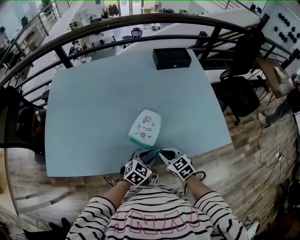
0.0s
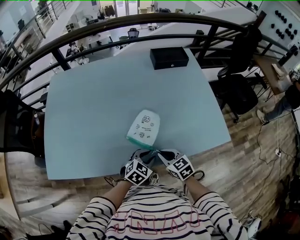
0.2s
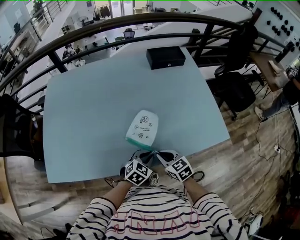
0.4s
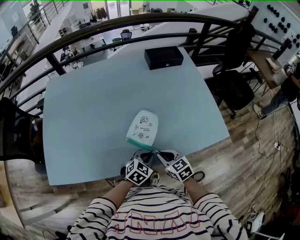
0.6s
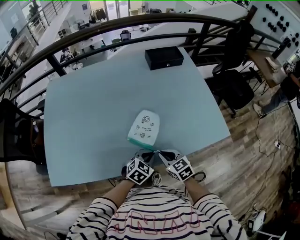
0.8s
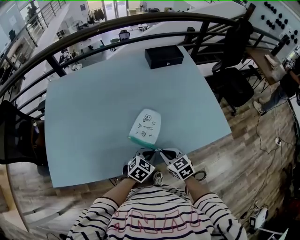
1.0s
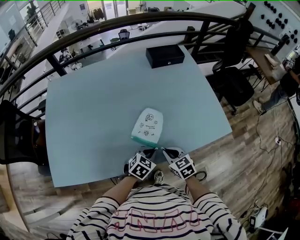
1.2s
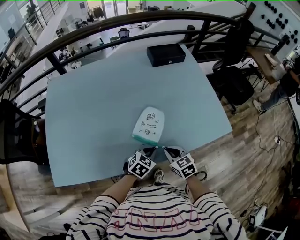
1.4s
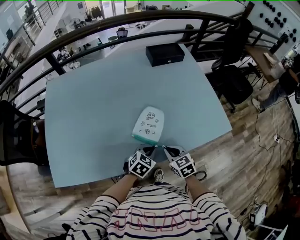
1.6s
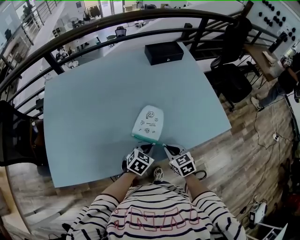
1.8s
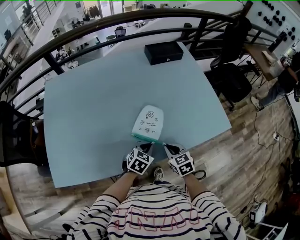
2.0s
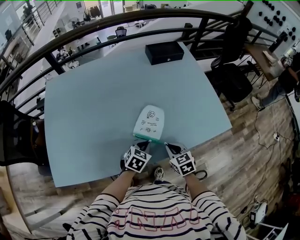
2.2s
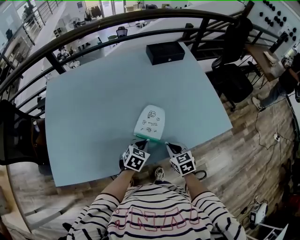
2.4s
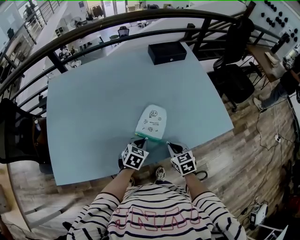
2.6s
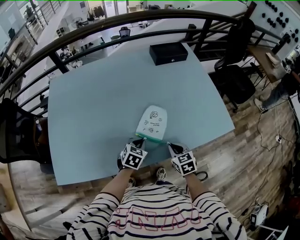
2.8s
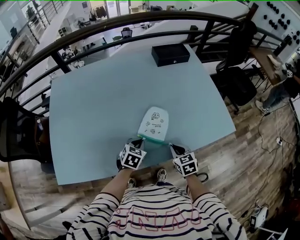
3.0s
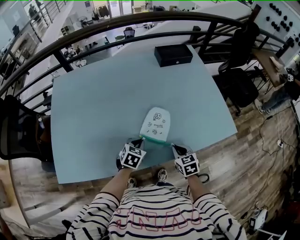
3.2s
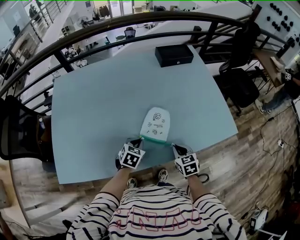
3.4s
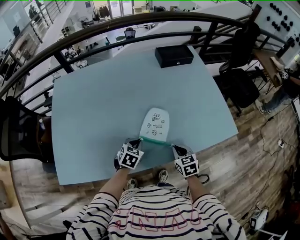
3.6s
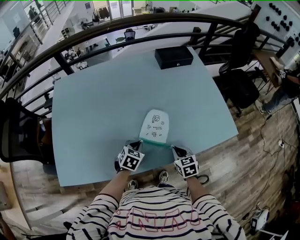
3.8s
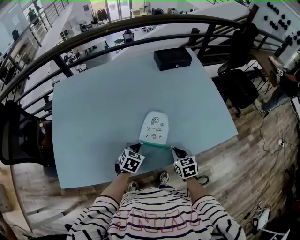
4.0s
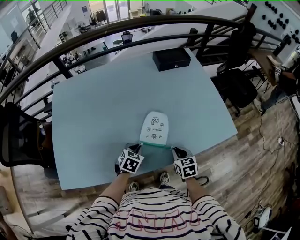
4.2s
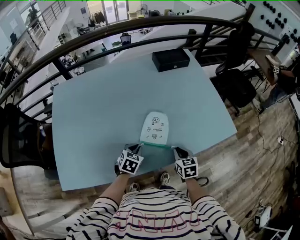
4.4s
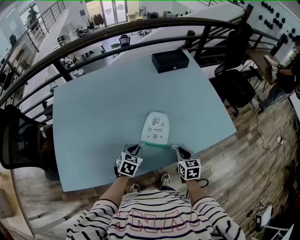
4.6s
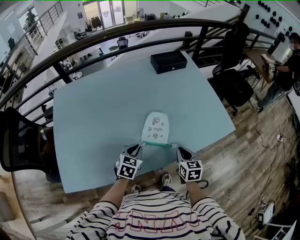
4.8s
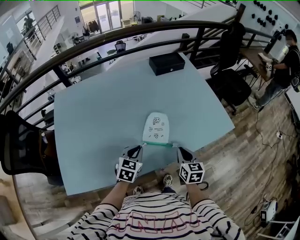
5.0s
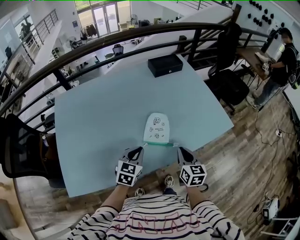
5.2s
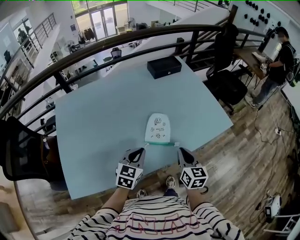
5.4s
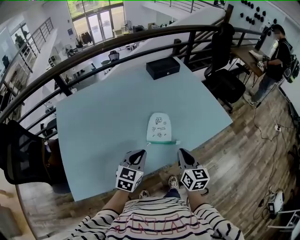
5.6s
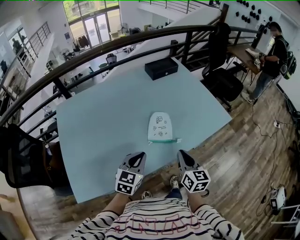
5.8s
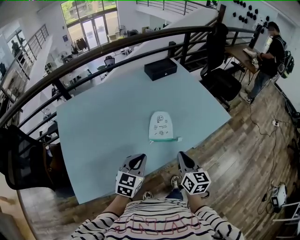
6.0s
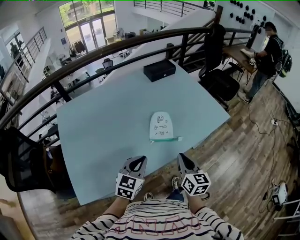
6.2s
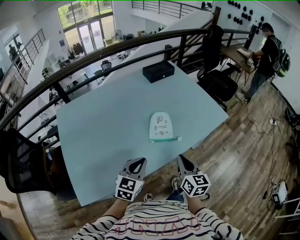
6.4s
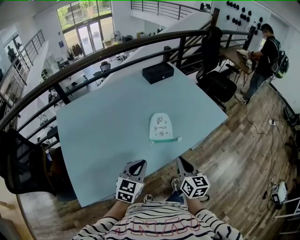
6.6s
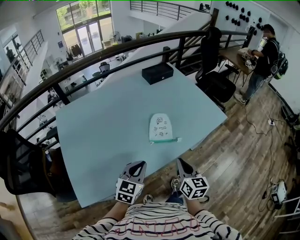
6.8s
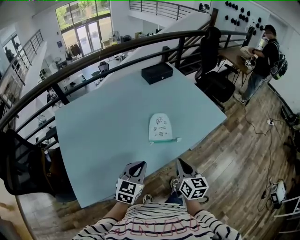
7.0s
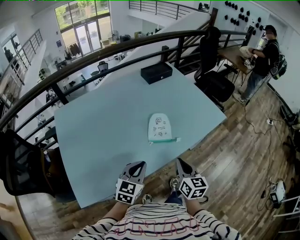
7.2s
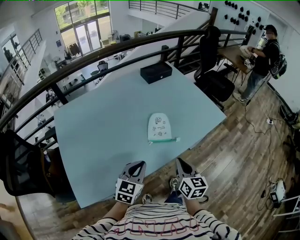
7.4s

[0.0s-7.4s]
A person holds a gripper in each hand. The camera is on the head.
0.0s to 1.4s: The left gripper closes up.
1.4s to 3.0s: The left gripper goes roughly 10 cm to the left.
3.0s to 4.4s: There are only small adjustments of the grippers.
4.4s to 6.0s: Both grippers travel together upward and backward, about 20 cm. The right gripper rotates approximately 30 degrees, while the left gripper turns by approximately 30 degrees.
6.0s to 7.4s: There are only small adjustments of the grippers.

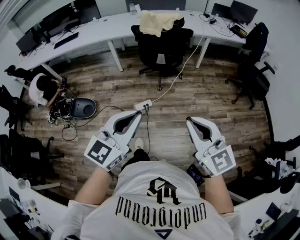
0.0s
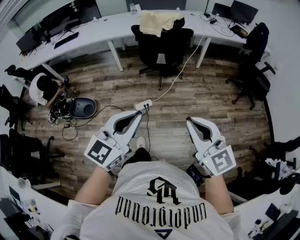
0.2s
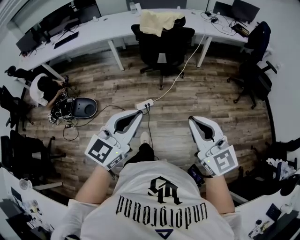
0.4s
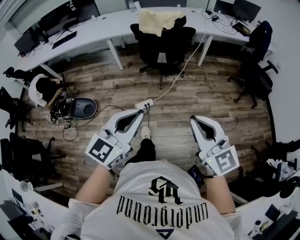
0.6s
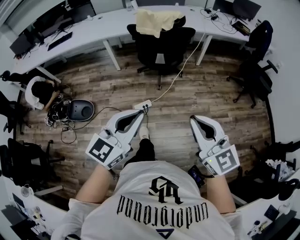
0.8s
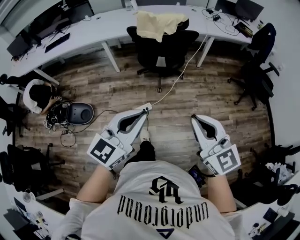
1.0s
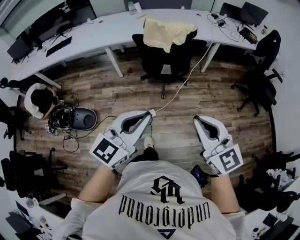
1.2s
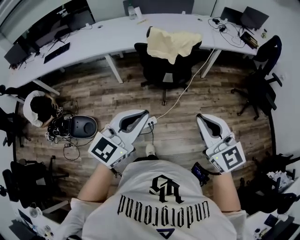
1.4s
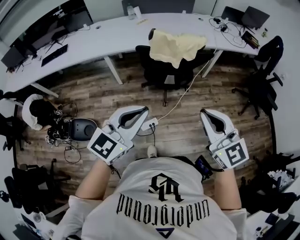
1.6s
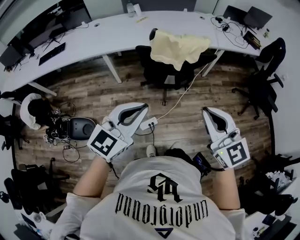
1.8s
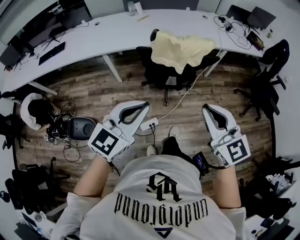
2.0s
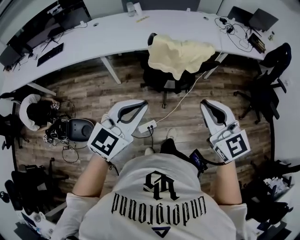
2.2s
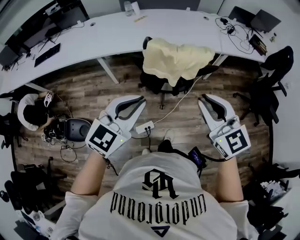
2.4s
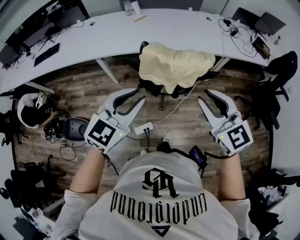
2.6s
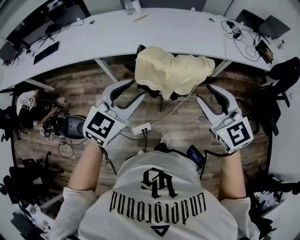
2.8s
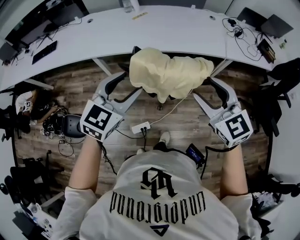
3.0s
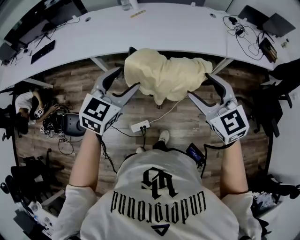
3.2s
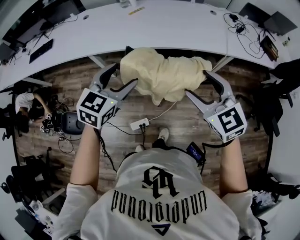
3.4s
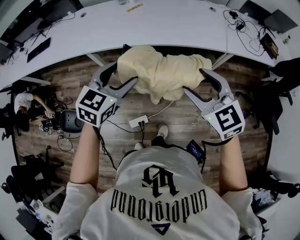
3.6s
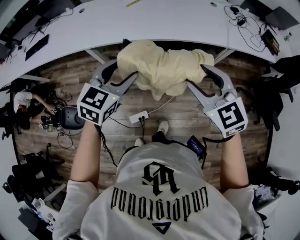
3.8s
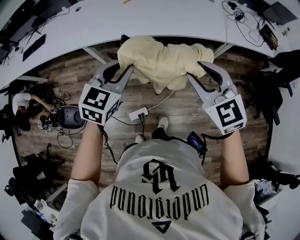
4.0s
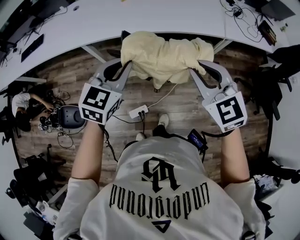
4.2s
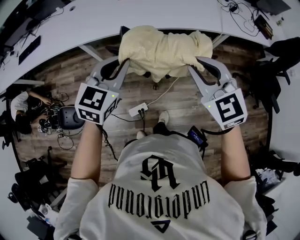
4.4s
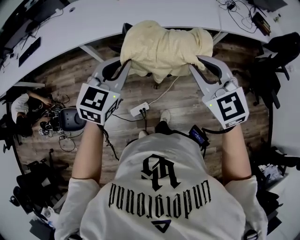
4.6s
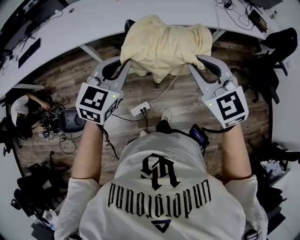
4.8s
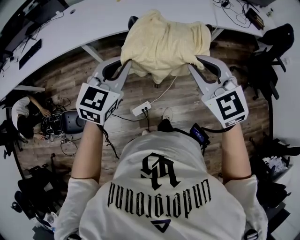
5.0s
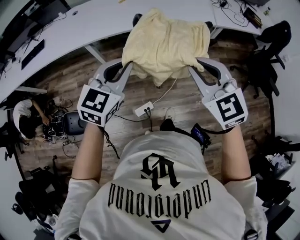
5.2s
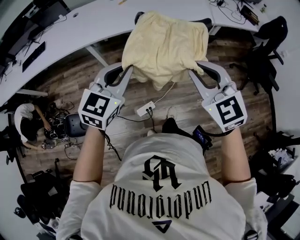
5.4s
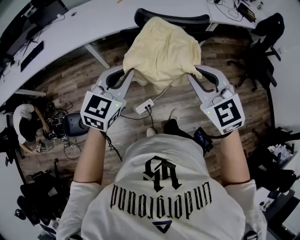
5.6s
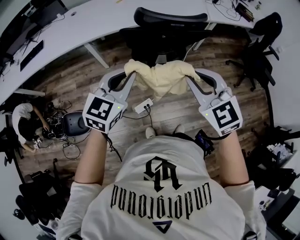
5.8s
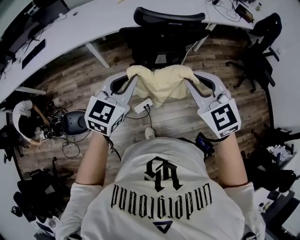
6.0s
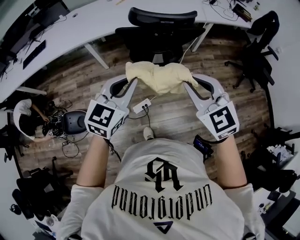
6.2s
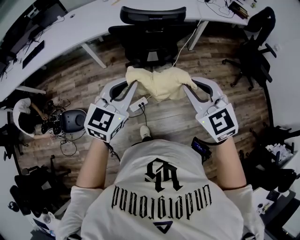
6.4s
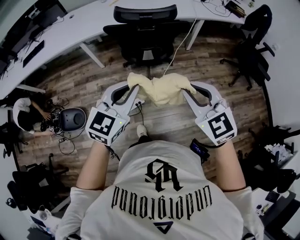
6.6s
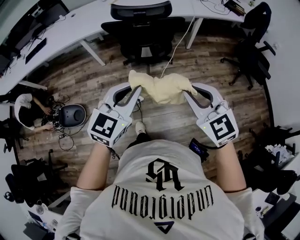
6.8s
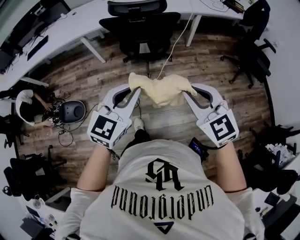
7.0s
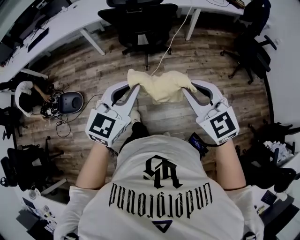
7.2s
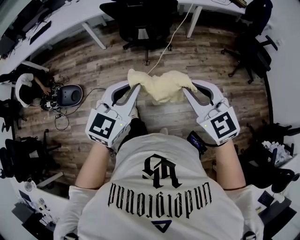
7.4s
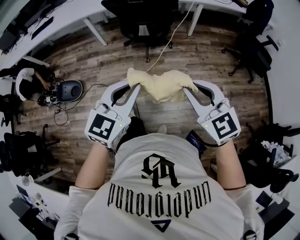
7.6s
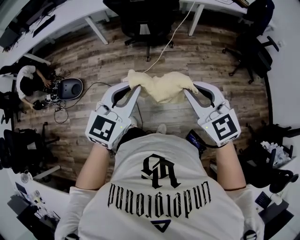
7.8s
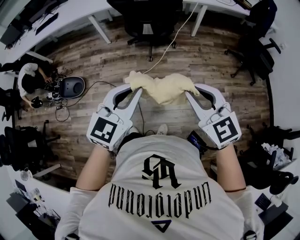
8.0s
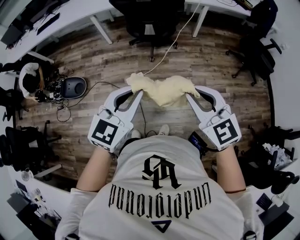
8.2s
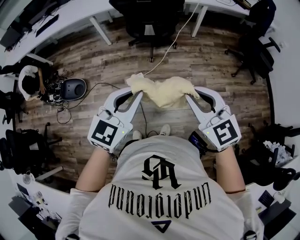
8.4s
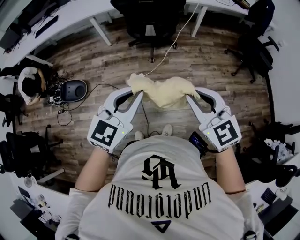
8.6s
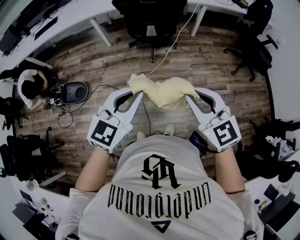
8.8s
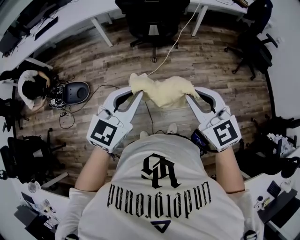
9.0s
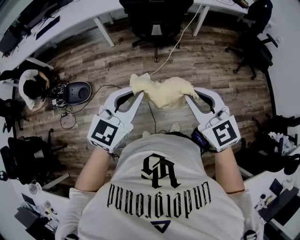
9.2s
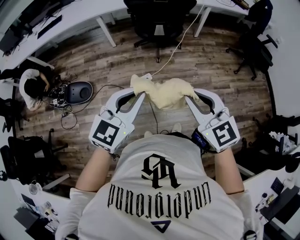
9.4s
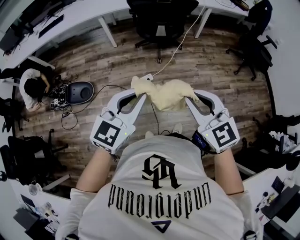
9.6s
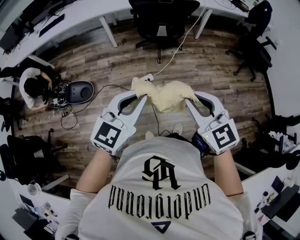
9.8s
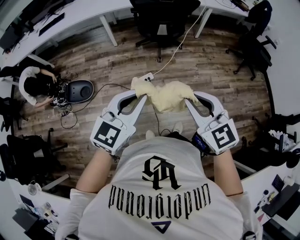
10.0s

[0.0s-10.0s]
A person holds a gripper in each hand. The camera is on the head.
0.0s to 1.4s: The two grippers go roughly 30 cm forward.
1.4s to 2.8s: The grippers both shift forward by about 35 cm. The right gripper opens. The left gripper opens its fingers.
2.8s to 4.2s: The right gripper shifts approximately 5 cm forward, and opens, then closes once more. The left gripper goes about 10 cm forward and downward, and opens, then closes again.
4.2s to 5.8s: The grippers both shift backward by roughly 20 cm.
5.8s to 7.2s: Both grippers travel together backward and to the right, about 35 cm.
7.2s to 8.6s: The two grippers go some 10 cm backward.
8.6s to 10.0s: The two grippers go about 20 cm to the left and backward.

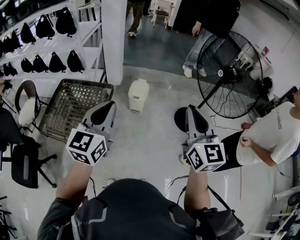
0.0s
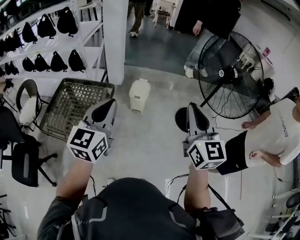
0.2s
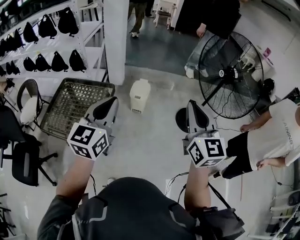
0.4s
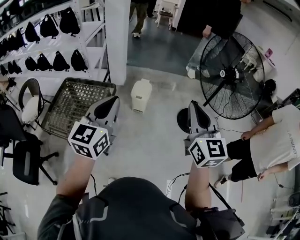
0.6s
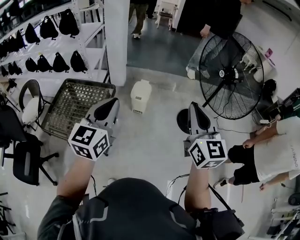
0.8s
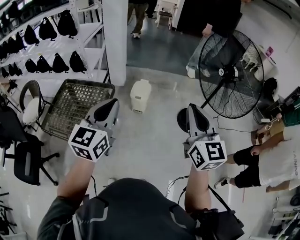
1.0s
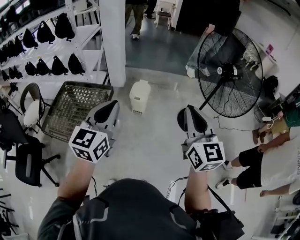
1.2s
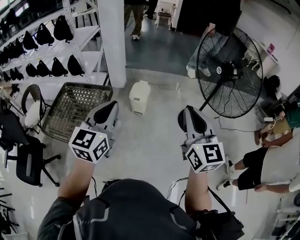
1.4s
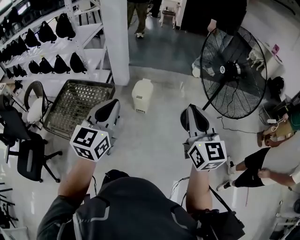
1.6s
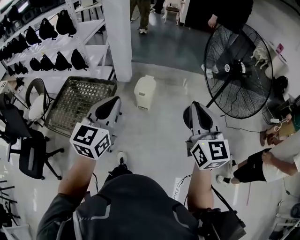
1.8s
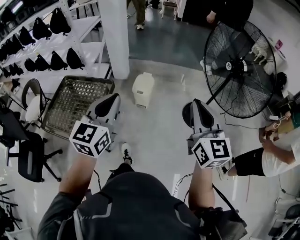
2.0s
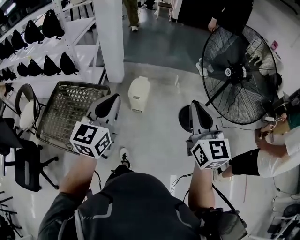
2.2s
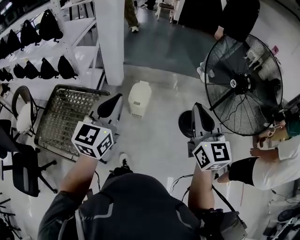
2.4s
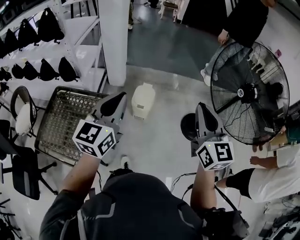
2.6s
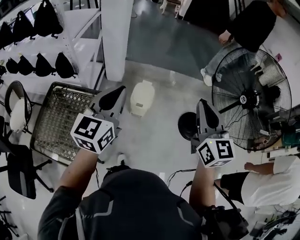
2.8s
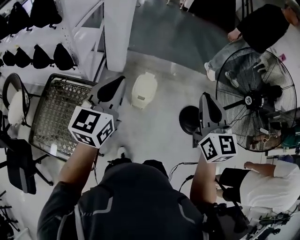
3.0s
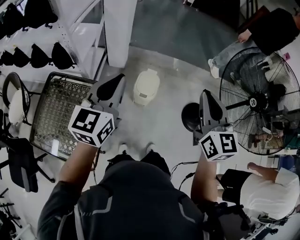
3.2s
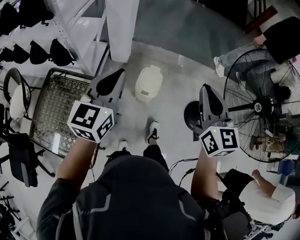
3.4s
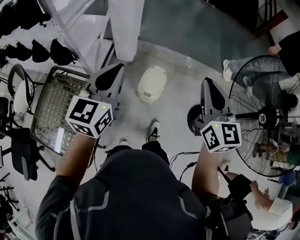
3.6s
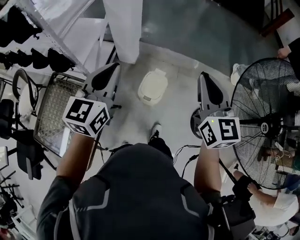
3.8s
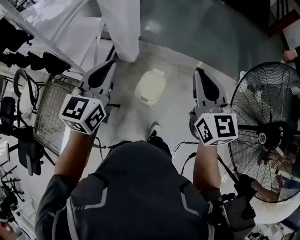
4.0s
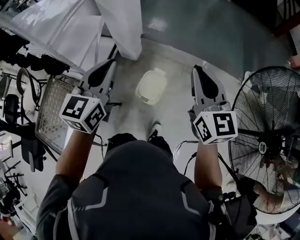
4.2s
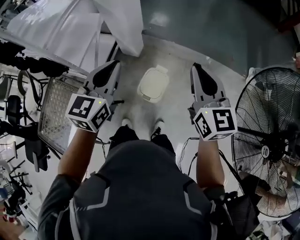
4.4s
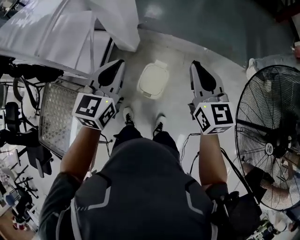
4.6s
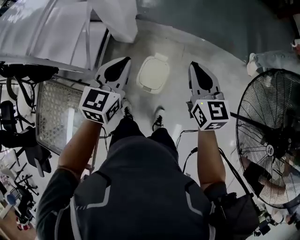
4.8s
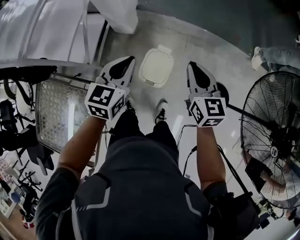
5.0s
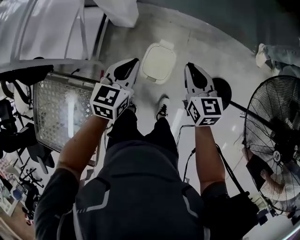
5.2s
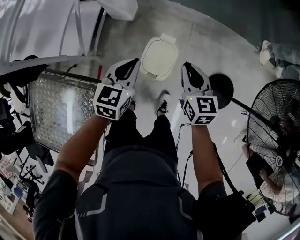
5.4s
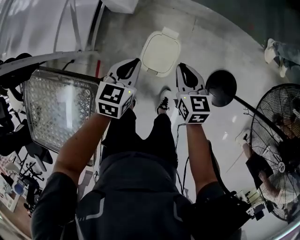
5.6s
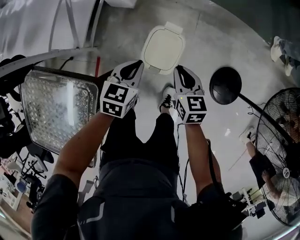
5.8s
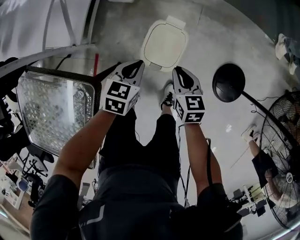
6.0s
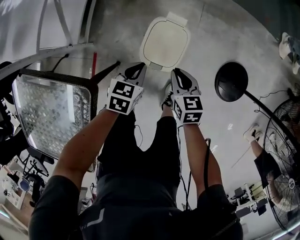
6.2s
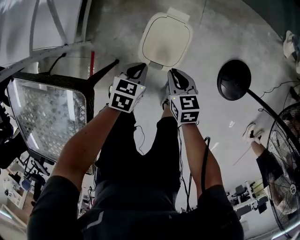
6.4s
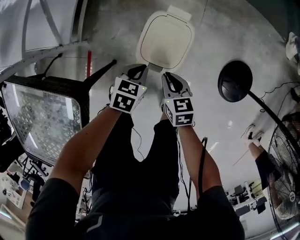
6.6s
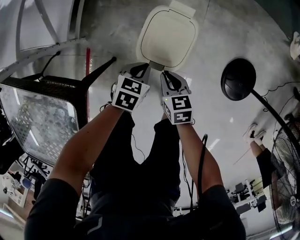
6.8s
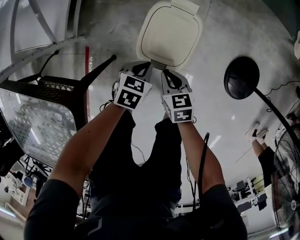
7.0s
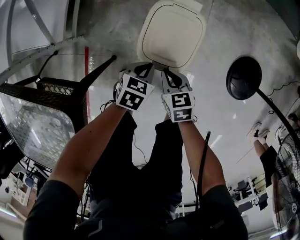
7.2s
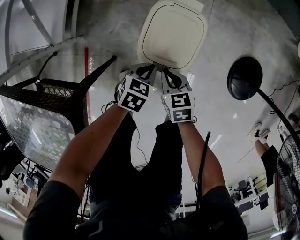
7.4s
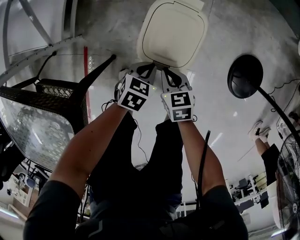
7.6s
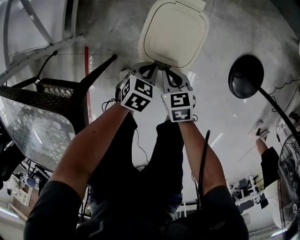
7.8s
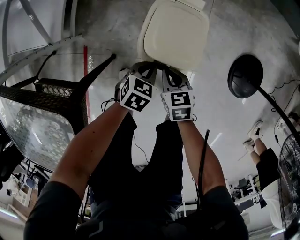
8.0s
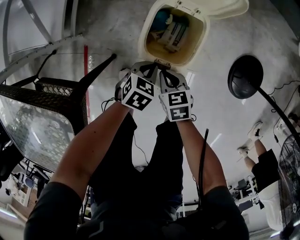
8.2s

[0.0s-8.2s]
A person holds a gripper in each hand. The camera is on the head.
0.0s to 1.6s: The two grippers go approximately 10 cm to the right.
1.6s to 3.2s: Both grippers are carried forward and to the left, roughly 40 cm.
3.2s to 5.0s: Both grippers travel together forward and downward, about 40 cm. The left gripper swivels roughly 20 degrees. Meanwhile the right gripper rotates about 20 degrees.
5.0s to 6.6s: The grippers both shift downward by about 50 cm. The left gripper tilts its fingers roughly 30 degrees downward; the right gripper swivels about 30 degrees.
6.6s to 8.2s: The two grippers go about 10 cm downward.
